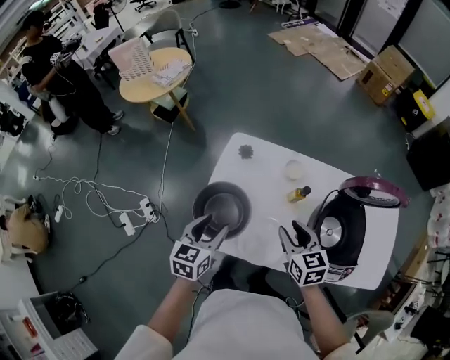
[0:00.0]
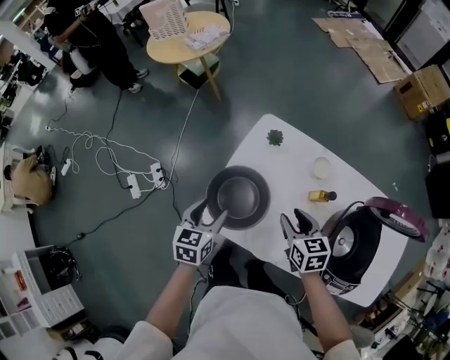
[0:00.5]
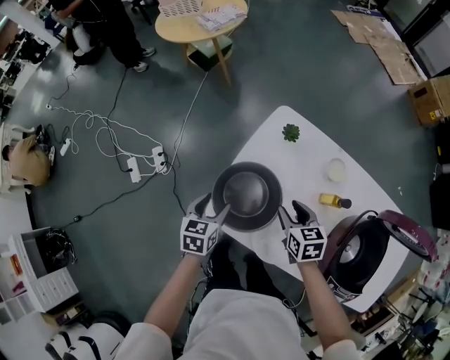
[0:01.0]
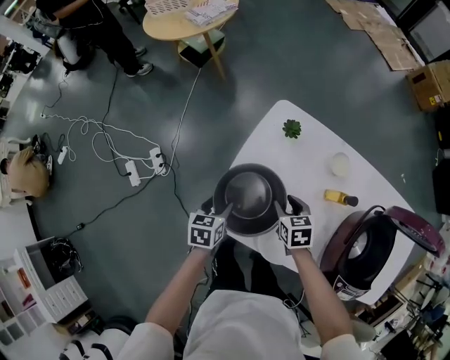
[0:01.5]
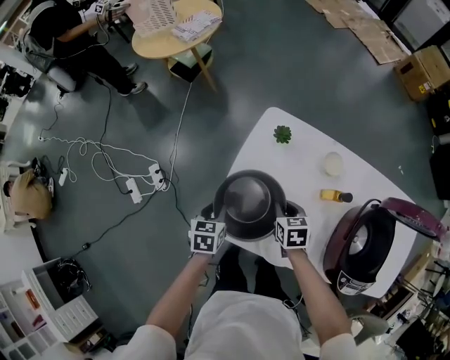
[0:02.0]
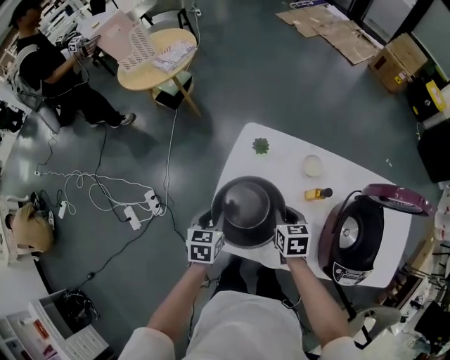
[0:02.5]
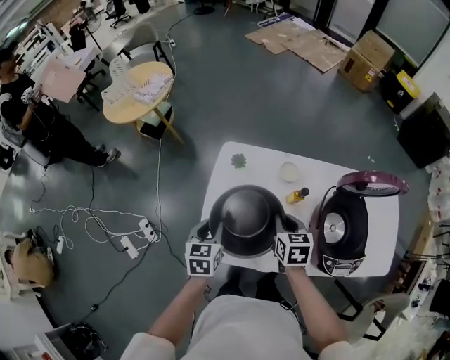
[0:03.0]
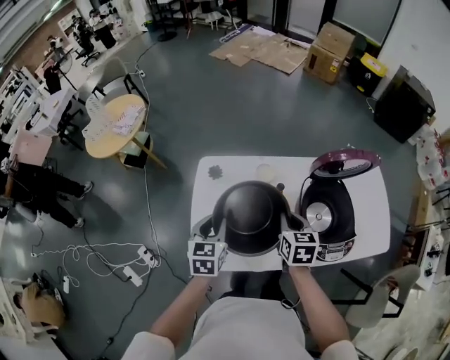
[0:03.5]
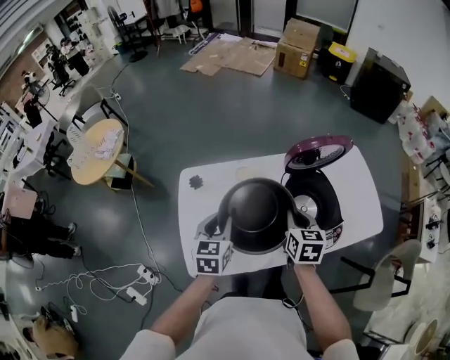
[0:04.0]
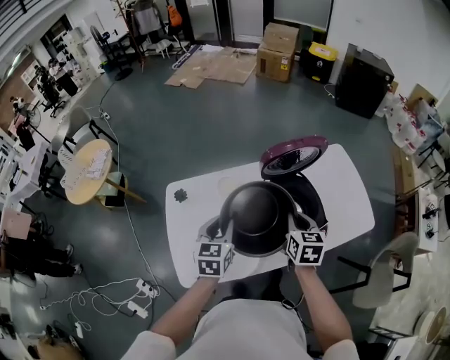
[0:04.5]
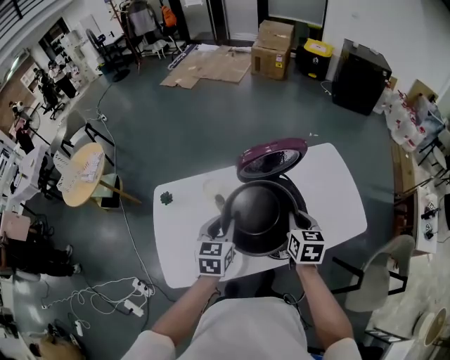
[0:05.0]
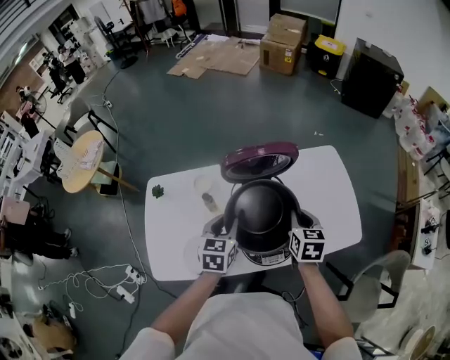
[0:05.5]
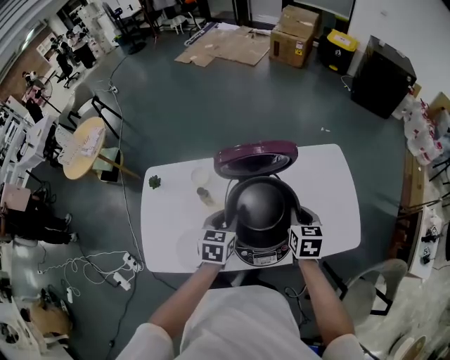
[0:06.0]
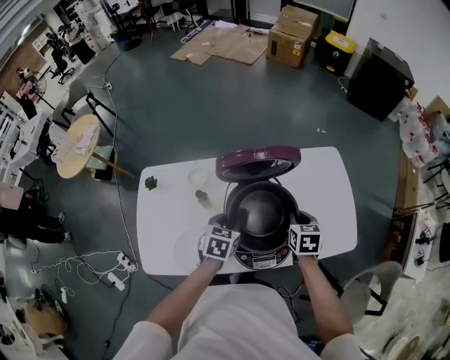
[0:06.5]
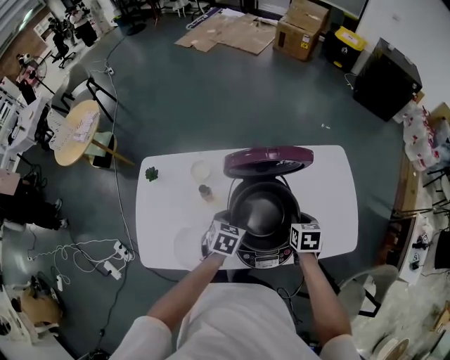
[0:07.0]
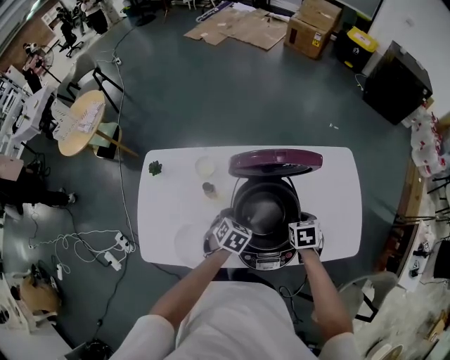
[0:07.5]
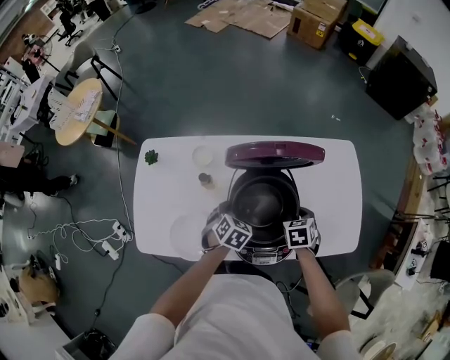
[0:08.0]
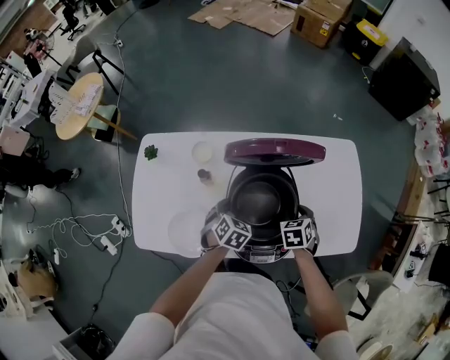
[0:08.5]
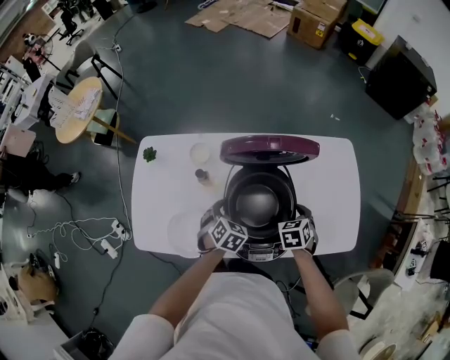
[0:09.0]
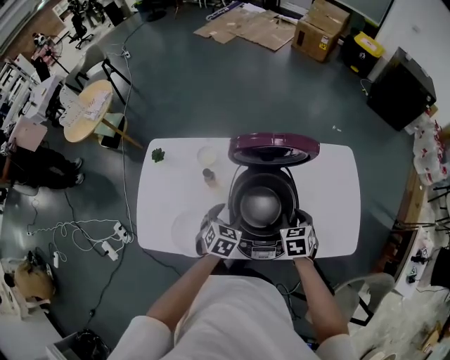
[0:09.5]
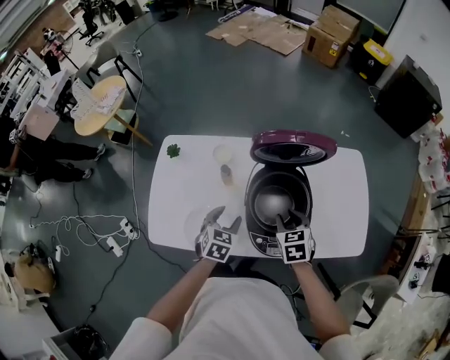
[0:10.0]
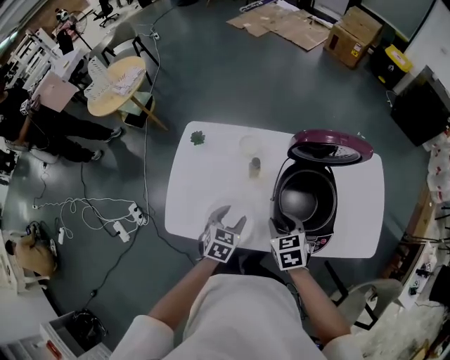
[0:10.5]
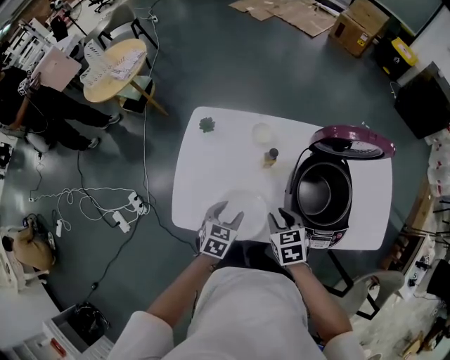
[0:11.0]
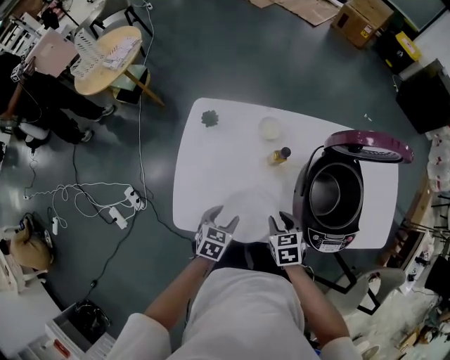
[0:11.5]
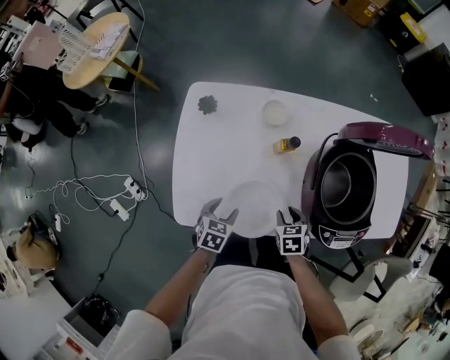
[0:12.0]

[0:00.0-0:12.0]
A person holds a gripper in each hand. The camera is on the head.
0:00.0 to 0:02.0: The right gripper goes about 25 cm downward, to the left and forward, changes its angle by roughly 20 degrees, and closes up, while the left gripper travels downward and to the left by about 20 cm, rotates approximately 30 degrees, and closes its fingers.
0:02.0 to 0:04.0: The right gripper changes place by some 35 cm, and changes its angle by some 50 degrees. The left gripper ends up about 35 cm from where it was, and turns by some 40 degrees.
0:04.0 to 0:06.0: Both grippers travel together to the right, about 25 cm.
0:06.0 to 0:08.0: Both grippers travel together downward, roughly 15 cm. The right gripper turns by approximately 30 degrees, while the left gripper rotates some 30 degrees.
0:08.0 to 0:10.0: The left gripper is displaced backward, to the left and upward by some 10 cm. The right gripper heads to the left, upward and backward, covering approximately 15 cm.
0:10.0 to 0:12.0: The left gripper goes approximately 25 cm to the left and downward. Meanwhile the right gripper moves downward and to the left, some 25 cm.

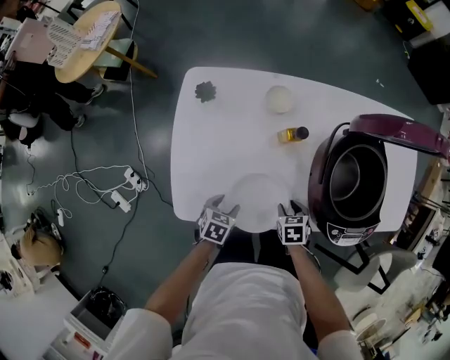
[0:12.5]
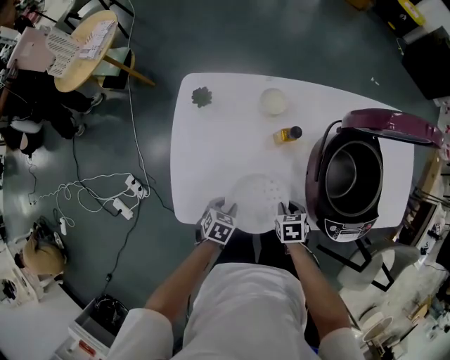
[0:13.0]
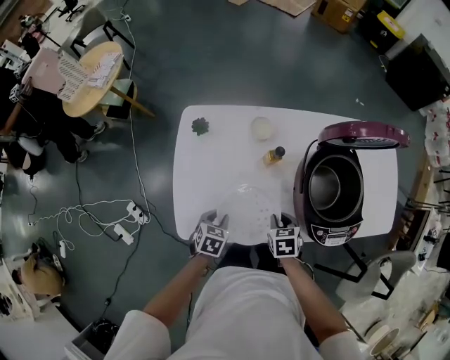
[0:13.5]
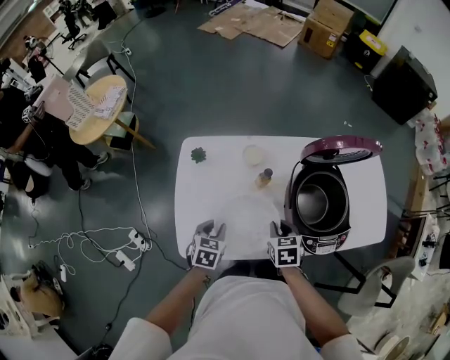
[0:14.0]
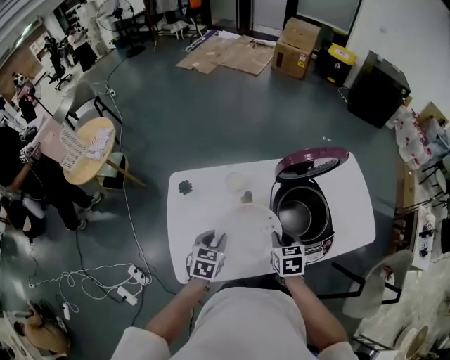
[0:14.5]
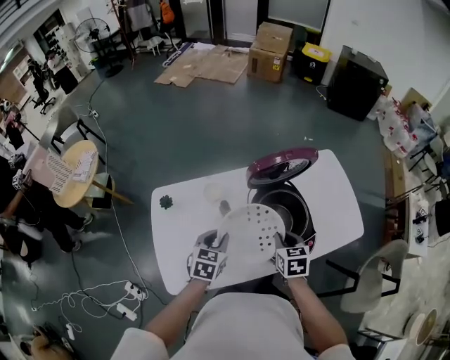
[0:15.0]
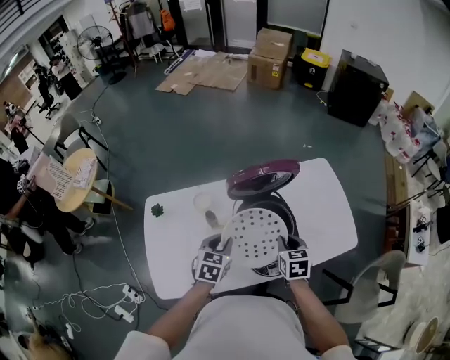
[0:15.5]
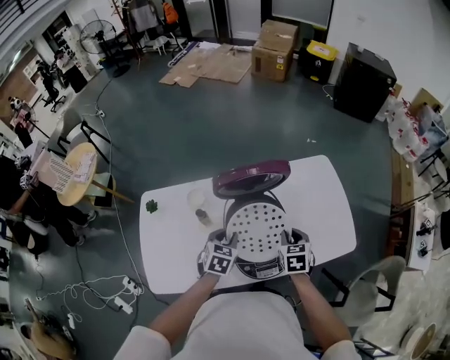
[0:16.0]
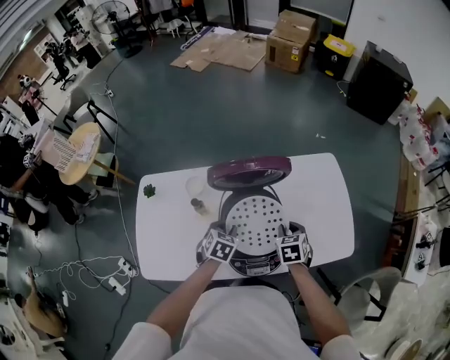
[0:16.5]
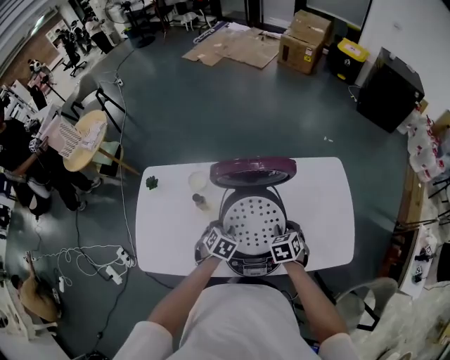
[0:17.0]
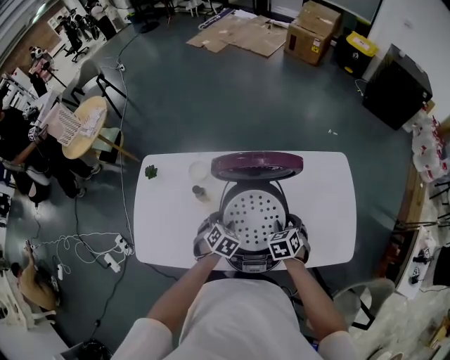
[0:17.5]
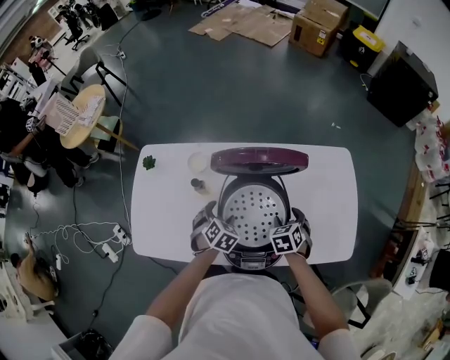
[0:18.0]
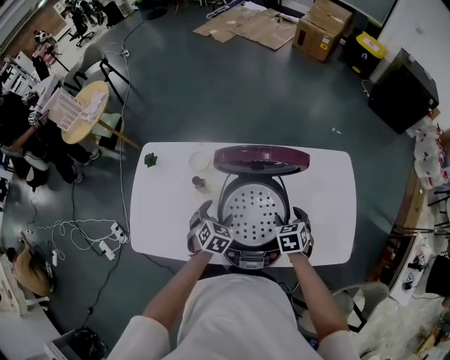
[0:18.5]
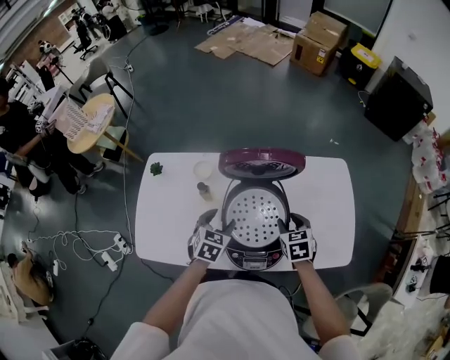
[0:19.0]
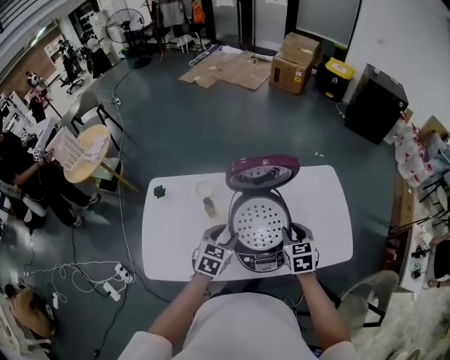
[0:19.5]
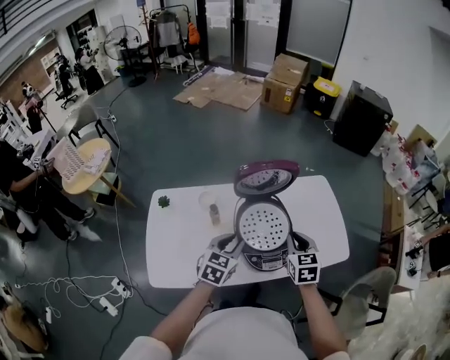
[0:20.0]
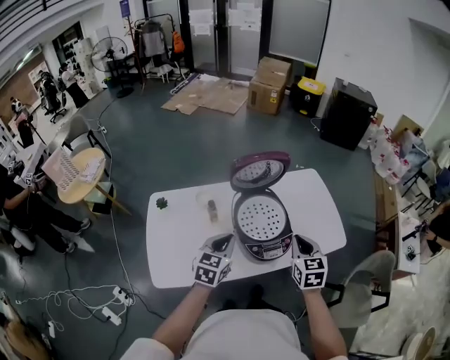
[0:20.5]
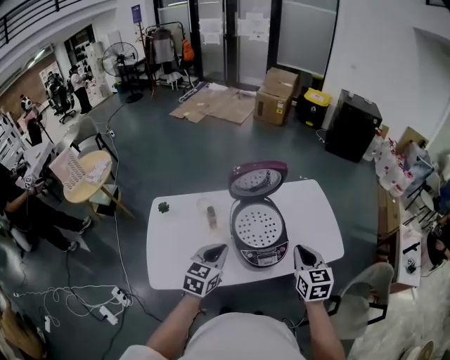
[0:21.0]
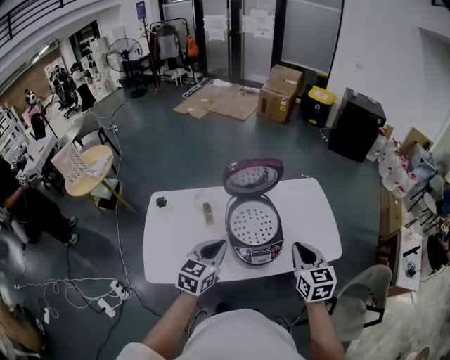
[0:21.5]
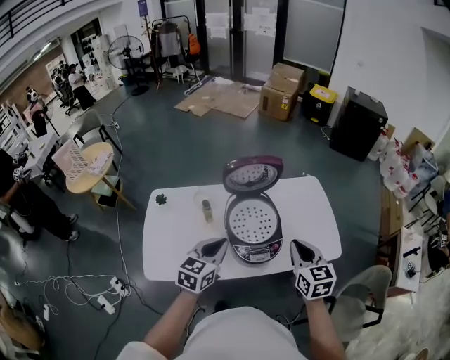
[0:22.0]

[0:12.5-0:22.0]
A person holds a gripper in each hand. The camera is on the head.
0:12.5 to 0:14.5: The right gripper shifts some 25 cm upward, turns by approximately 30 degrees, and closes. Meanwhile the left gripper moves upward and forward, roughly 25 cm, turns by approximately 30 degrees, and closes its fingers.
0:14.5 to 0:16.5: The grippers both shift to the right and forward by about 25 cm.
0:16.5 to 0:18.0: The grippers both shift downward by some 5 cm. The left gripper opens its fingers. The right gripper opens up.
0:18.0 to 0:20.0: The grippers both shift upward and backward by approximately 25 cm. The left gripper points its fingers approximately 30 degrees further upward, and closes its fingers. Meanwhile the right gripper changes its angle by roughly 30 degrees, and closes its fingers.
0:20.0 to 0:22.0: The right gripper heads upward, backward and to the right, covering some 15 cm. Meanwhile the left gripper heads upward and backward, covering approximately 10 cm.

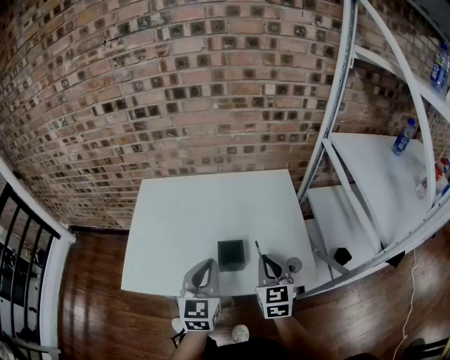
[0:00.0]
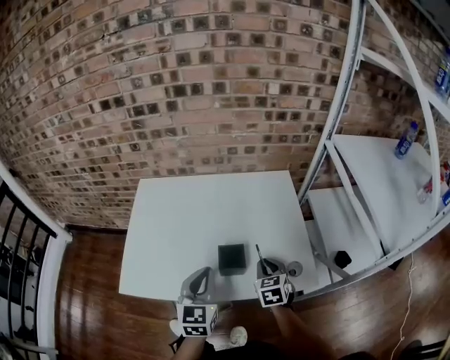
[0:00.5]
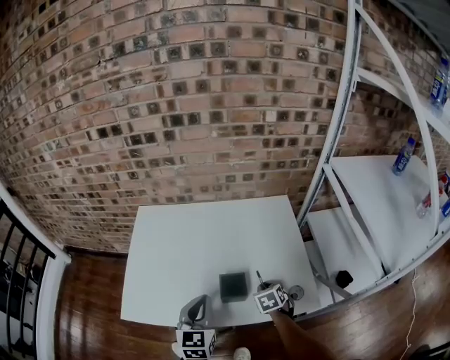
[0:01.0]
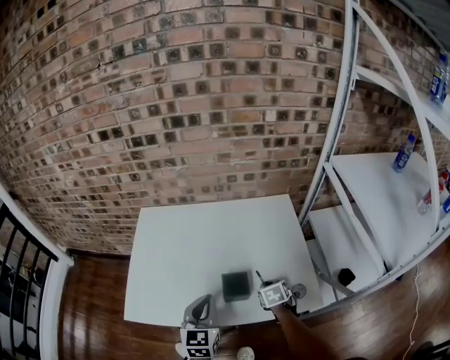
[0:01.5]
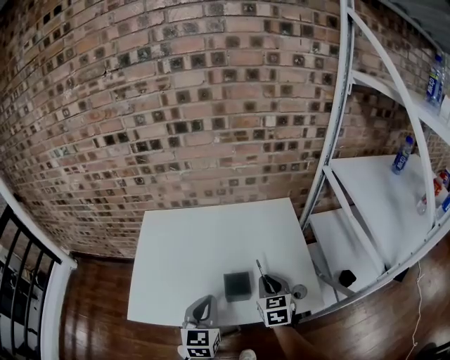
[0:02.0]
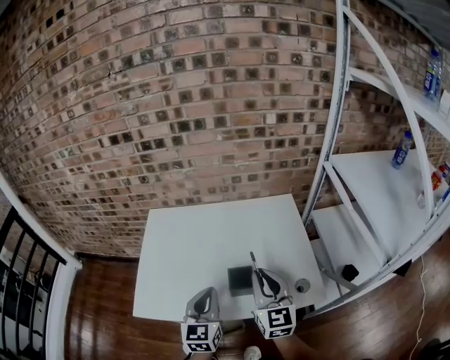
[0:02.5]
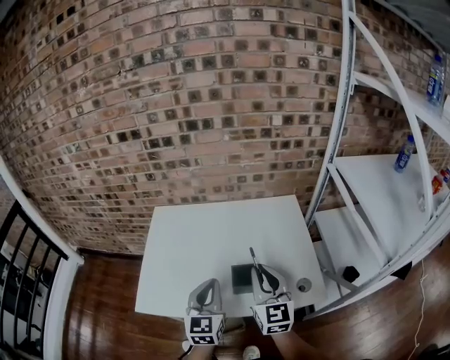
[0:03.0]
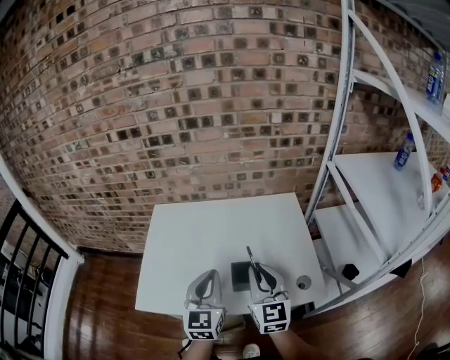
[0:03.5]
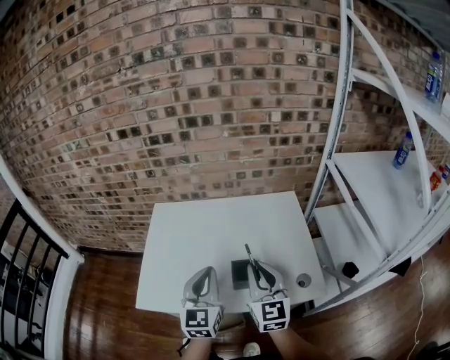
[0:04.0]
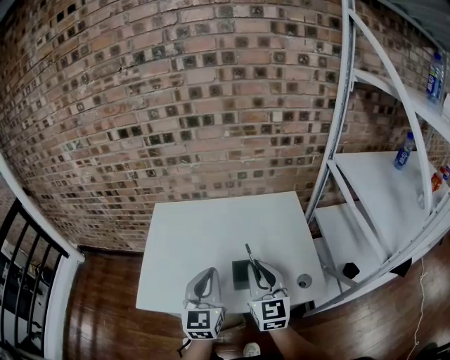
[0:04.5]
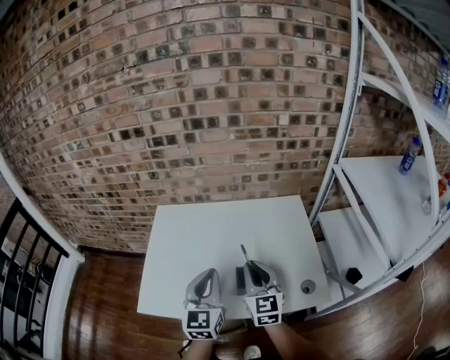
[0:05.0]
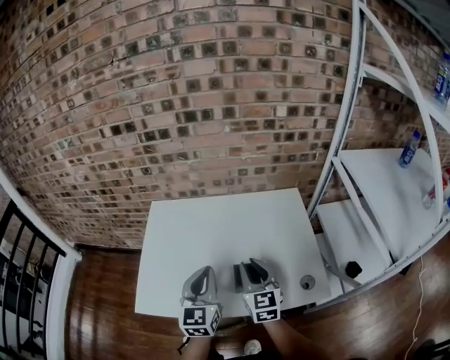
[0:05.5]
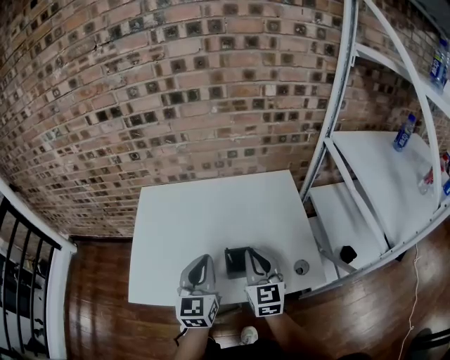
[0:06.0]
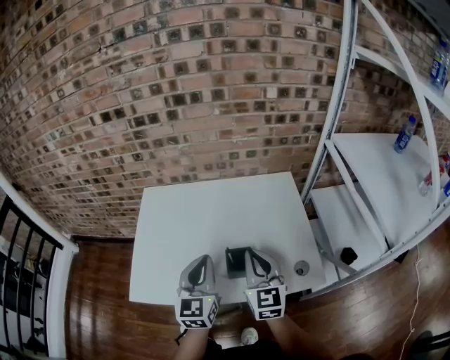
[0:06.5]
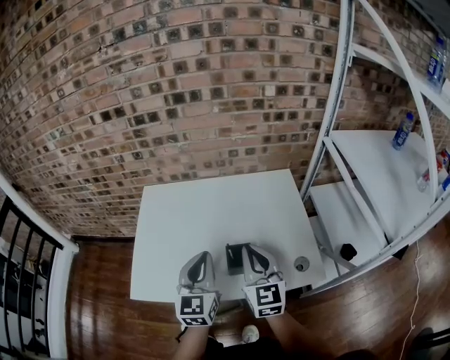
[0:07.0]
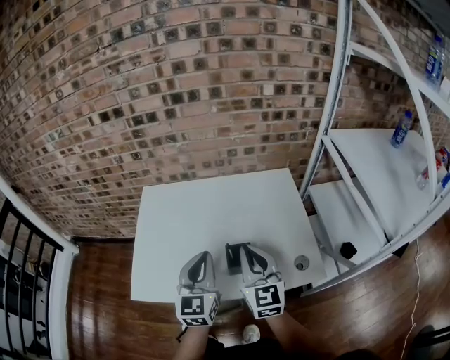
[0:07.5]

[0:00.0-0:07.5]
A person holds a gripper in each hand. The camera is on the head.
0:00.0 to 0:02.0: The right gripper shifts some 5 cm forward, and reaches some 15 cm downward, then returns.
0:02.0 to 0:04.0: The left gripper goes about 10 cm upward, while the right gripper is displaced upward and to the left by some 15 cm, and swivels about 30 degrees.
0:04.0 to 0:05.5: The right gripper travels downward and forward by approximately 10 cm.
0:05.5 to 0:07.5: The right gripper goes about 5 cm upward, and closes its fingers.
